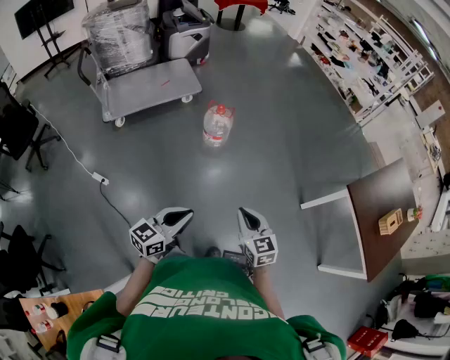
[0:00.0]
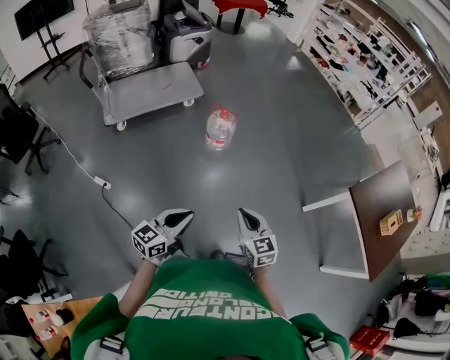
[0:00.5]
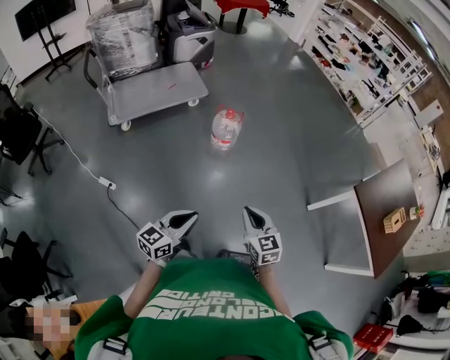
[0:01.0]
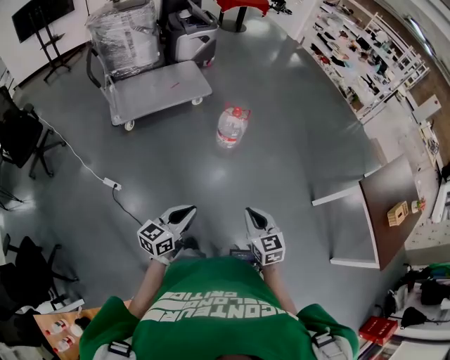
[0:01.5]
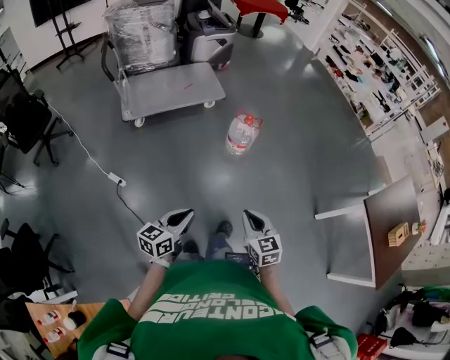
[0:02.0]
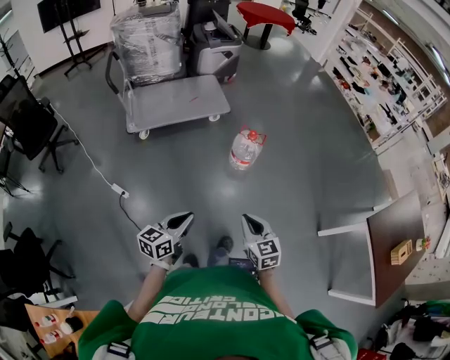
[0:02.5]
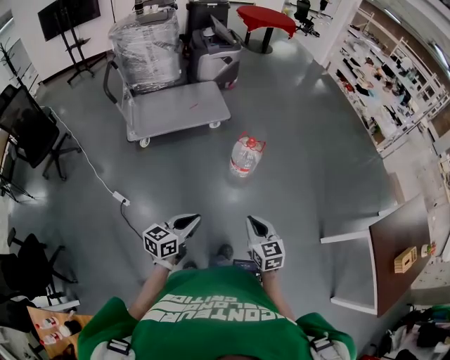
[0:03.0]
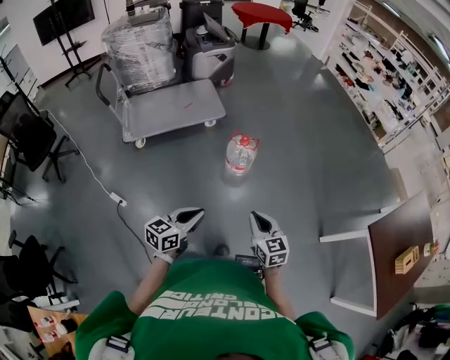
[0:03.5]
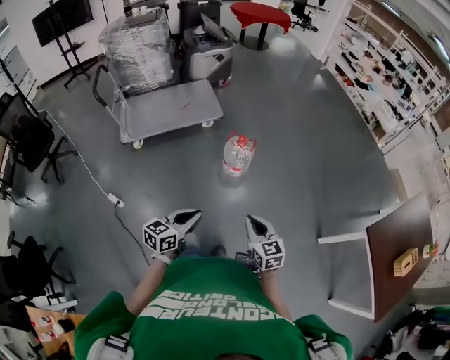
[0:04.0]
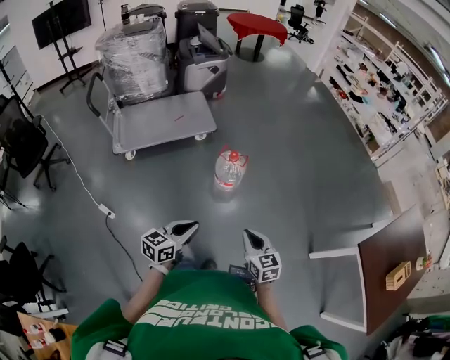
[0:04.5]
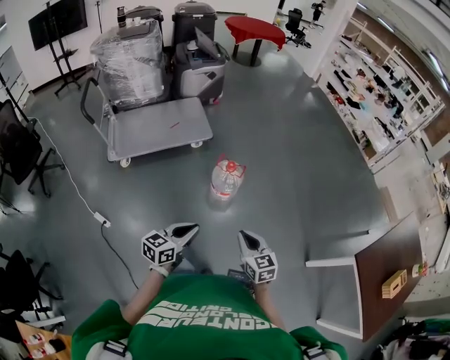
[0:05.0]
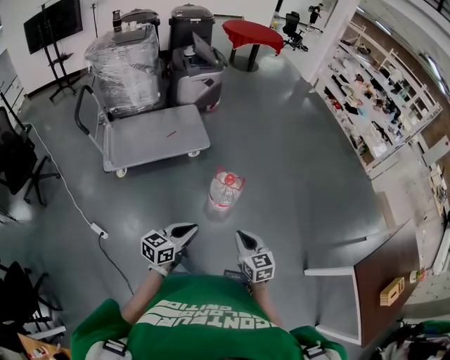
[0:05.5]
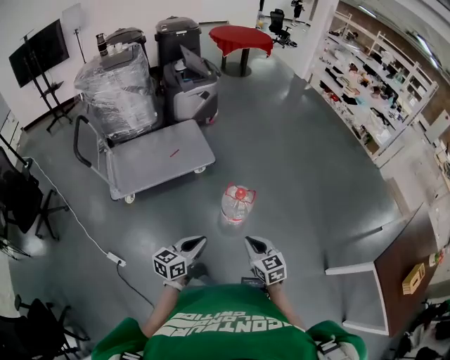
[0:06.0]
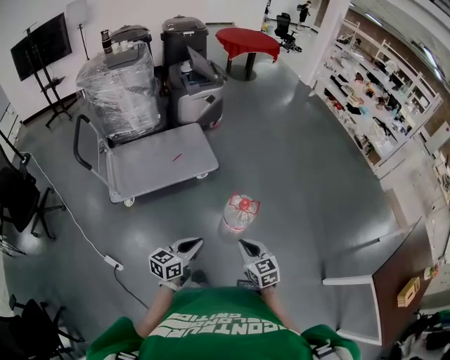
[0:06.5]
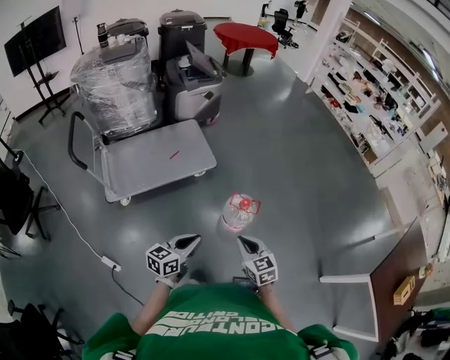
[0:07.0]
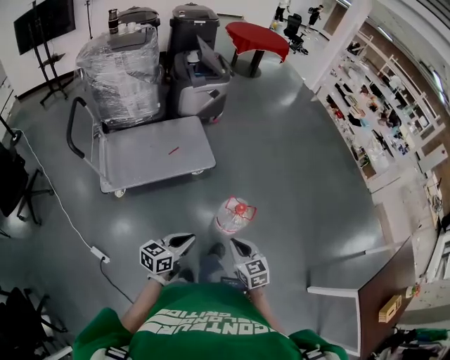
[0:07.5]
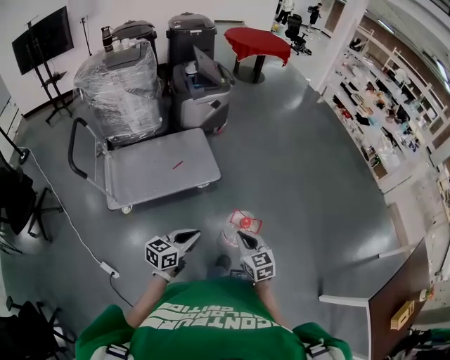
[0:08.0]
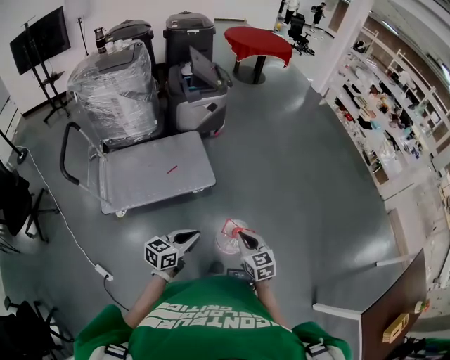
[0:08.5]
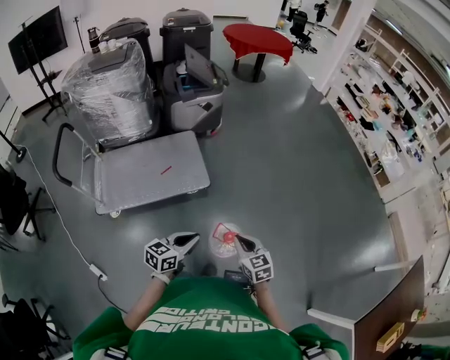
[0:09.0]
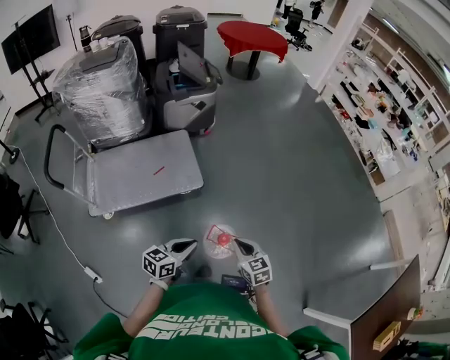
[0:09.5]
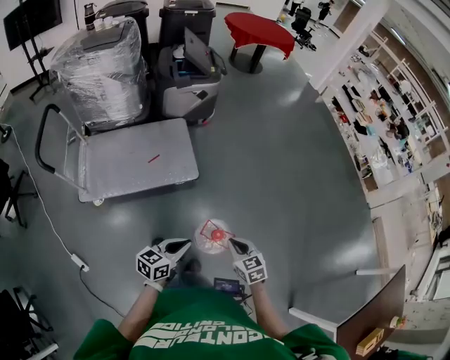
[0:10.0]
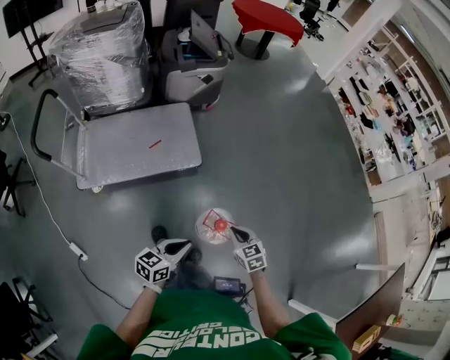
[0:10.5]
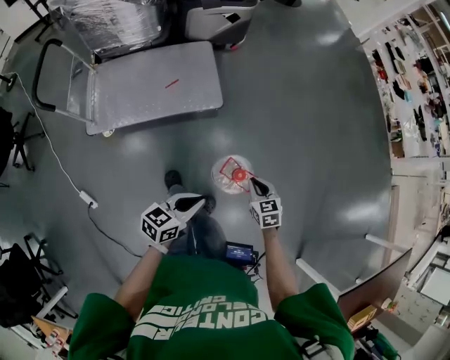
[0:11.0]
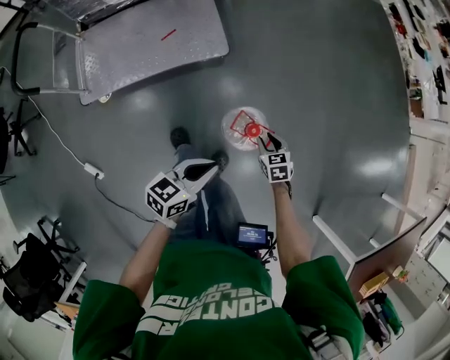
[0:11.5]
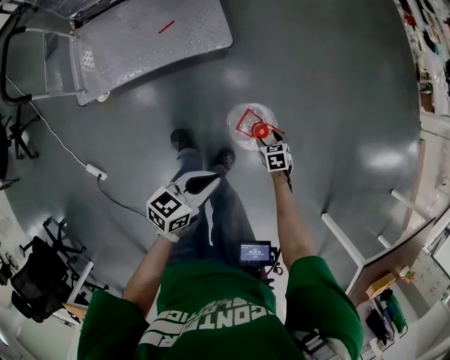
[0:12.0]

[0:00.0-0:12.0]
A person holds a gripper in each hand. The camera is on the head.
0:00.0 to 0:02.0: The grippers both shift to the left by about 15 cm.
0:02.0 to 0:04.0: Both grippers travel together forward and to the right, roughly 20 cm.
0:04.0 to 0:06.0: The right gripper travels forward and to the left by about 25 cm; the left gripper shifts roughly 25 cm forward.
0:06.0 to 0:08.0: The grippers both shift forward and to the left by some 20 cm.
0:08.0 to 0:10.0: The two grippers go roughly 15 cm forward, to the right and downward.
0:10.0 to 0:12.0: The left gripper heads downward, covering roughly 15 cm, while the right gripper moves downward, approximately 35 cm, swivels roughly 30 degrees, and opens.

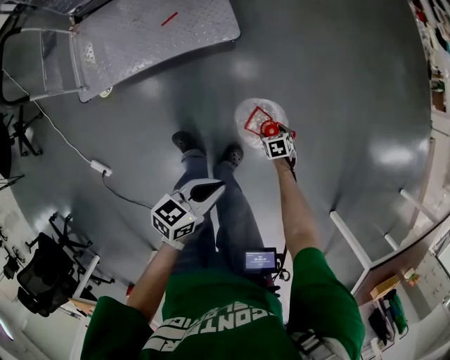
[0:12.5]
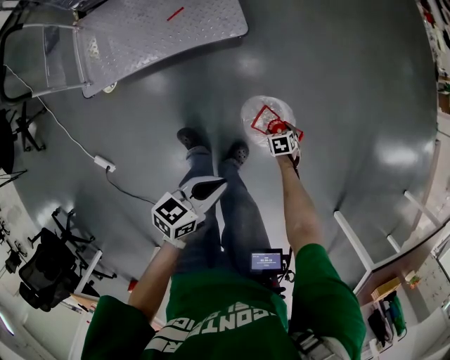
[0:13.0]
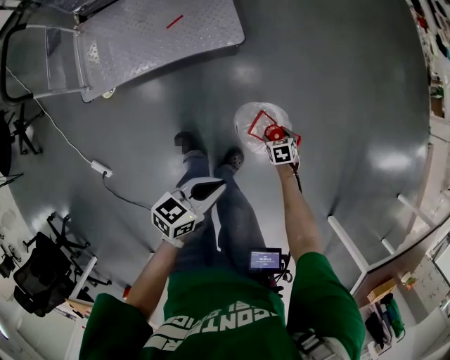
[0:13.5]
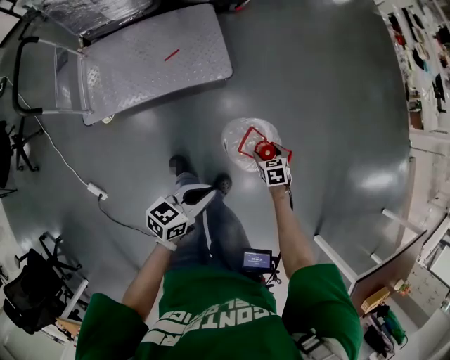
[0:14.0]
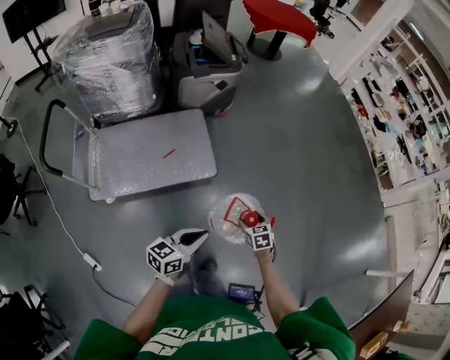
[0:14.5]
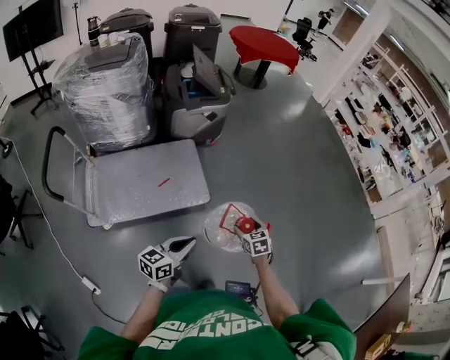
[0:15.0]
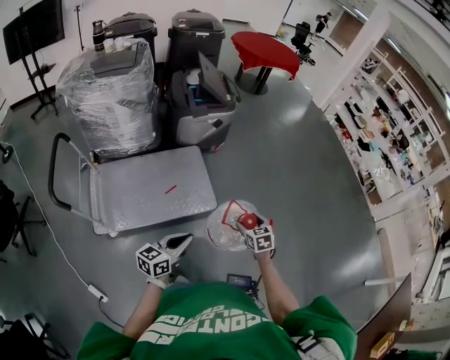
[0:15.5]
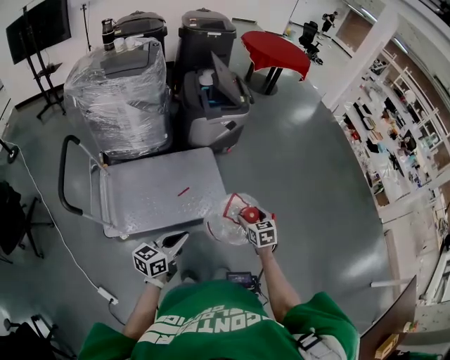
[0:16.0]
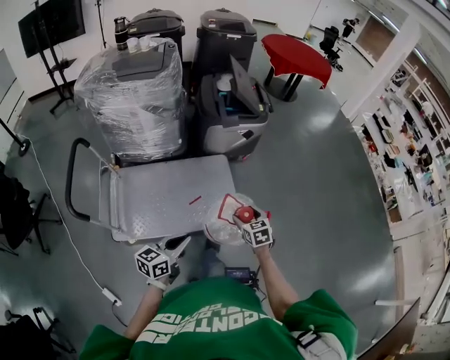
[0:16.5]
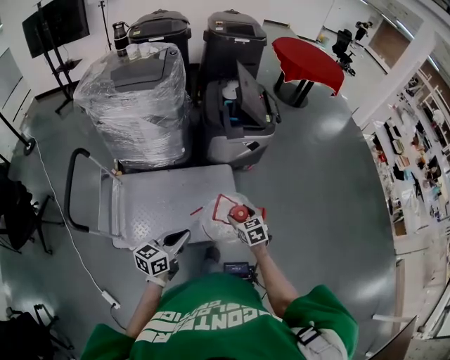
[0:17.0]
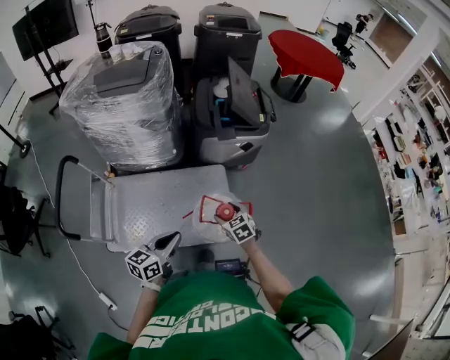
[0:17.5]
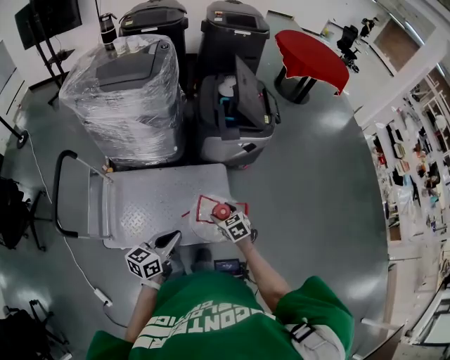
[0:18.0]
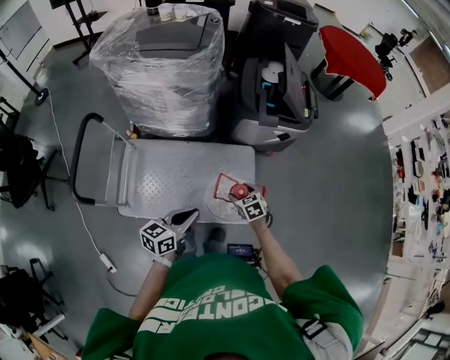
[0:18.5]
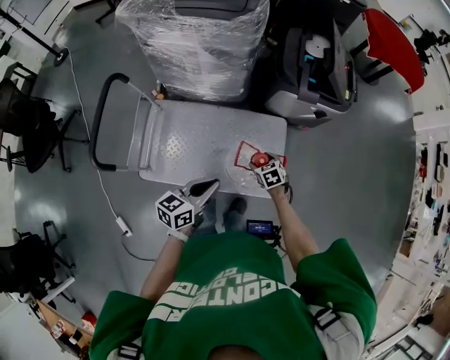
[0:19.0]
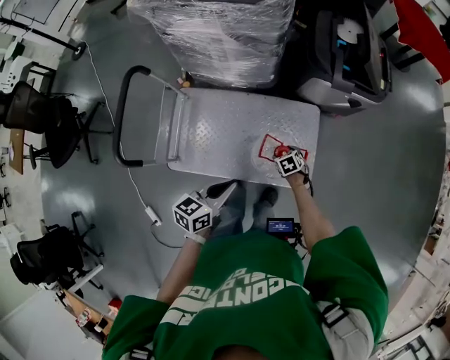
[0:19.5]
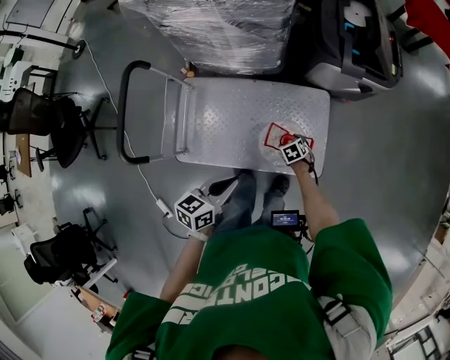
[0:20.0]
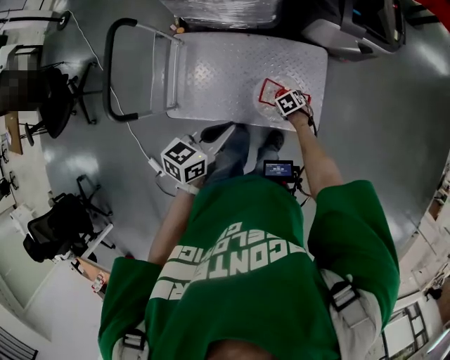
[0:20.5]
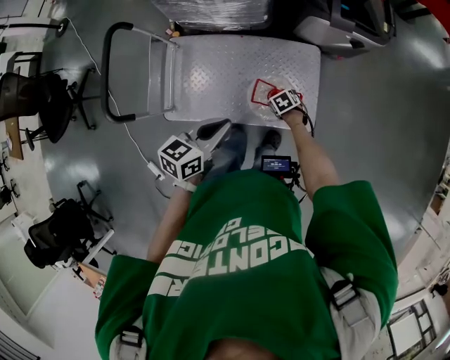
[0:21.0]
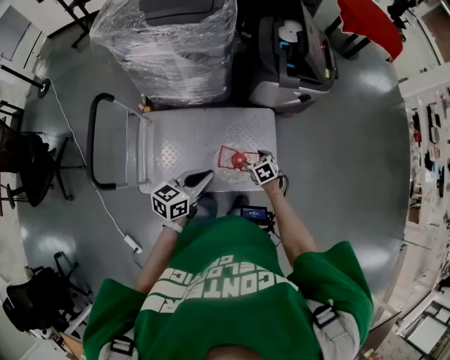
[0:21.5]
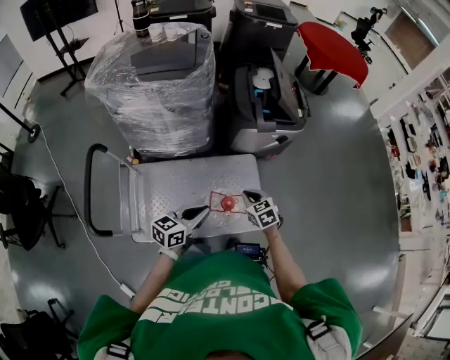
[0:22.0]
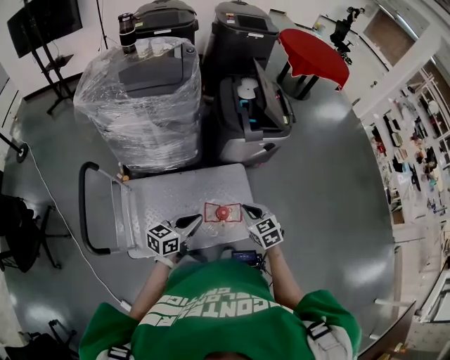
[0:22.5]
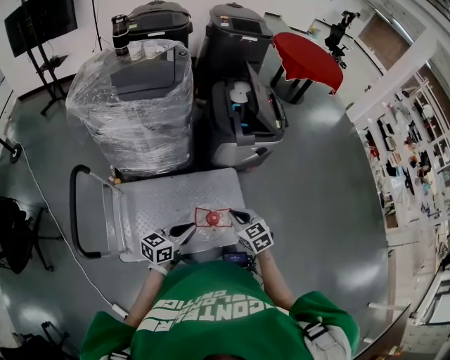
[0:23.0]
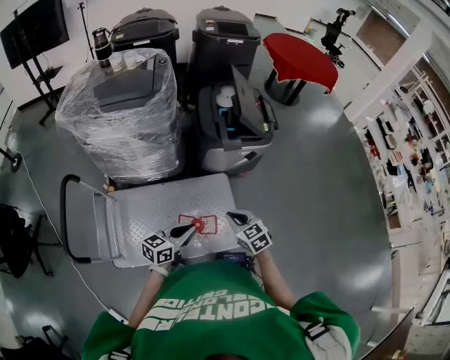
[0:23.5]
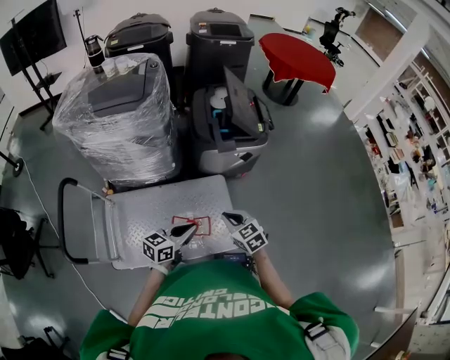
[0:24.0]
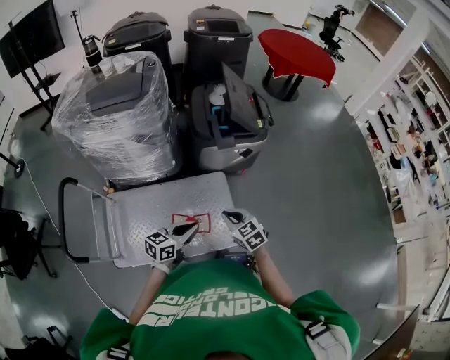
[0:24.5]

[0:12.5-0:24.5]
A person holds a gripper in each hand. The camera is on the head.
0:12.5 to 0:14.5: The left gripper moves upward, roughly 15 cm; the right gripper moves upward, about 30 cm, and swivels some 20 degrees.
0:14.5 to 0:16.5: Both grippers travel together to the left and forward, approximately 30 cm.
0:16.5 to 0:18.5: The left gripper moves forward, approximately 20 cm; the right gripper moves forward and to the left, some 25 cm, and turns by roughly 20 degrees.
0:18.5 to 0:20.5: The right gripper goes roughly 20 cm downward, and rotates roughly 30 degrees. Meanwhile the left gripper moves some 10 cm.
0:20.5 to 0:22.5: The left gripper shifts by about 5 cm, and swivels roughly 20 degrees. The right gripper shifts roughly 35 cm upward, tilts its fingers roughly 40 degrees upward, and closes up.
0:22.5 to 0:24.5: The left gripper heads to the right, covering roughly 15 cm, while the right gripper heads to the right, covering about 10 cm.

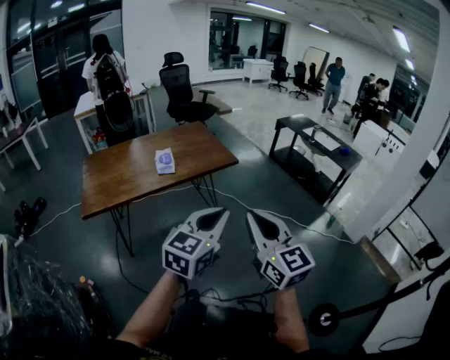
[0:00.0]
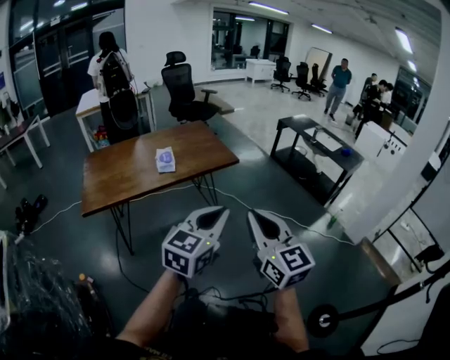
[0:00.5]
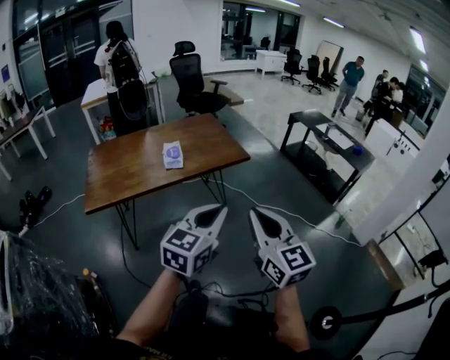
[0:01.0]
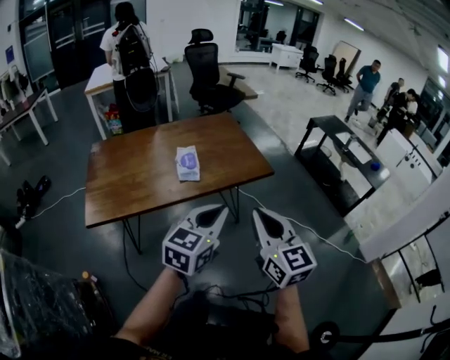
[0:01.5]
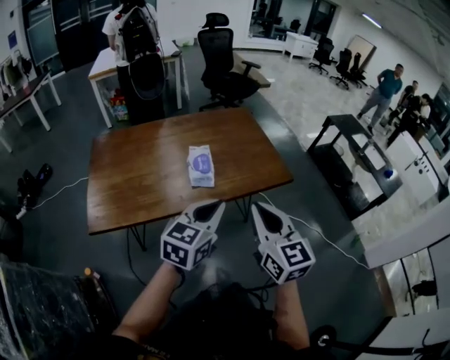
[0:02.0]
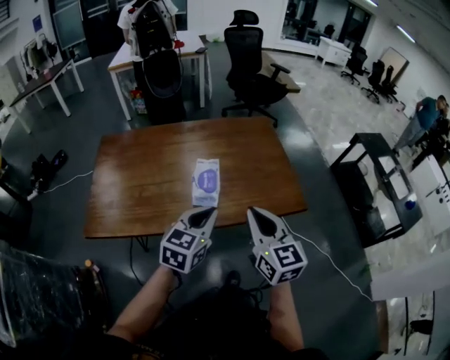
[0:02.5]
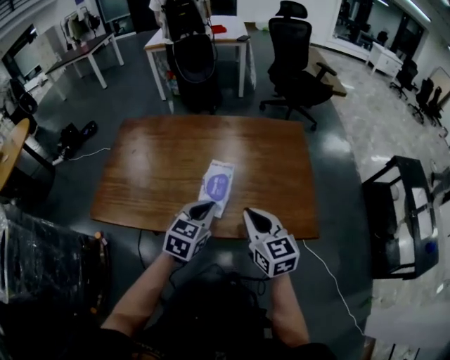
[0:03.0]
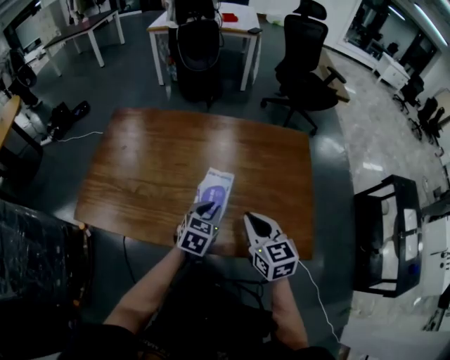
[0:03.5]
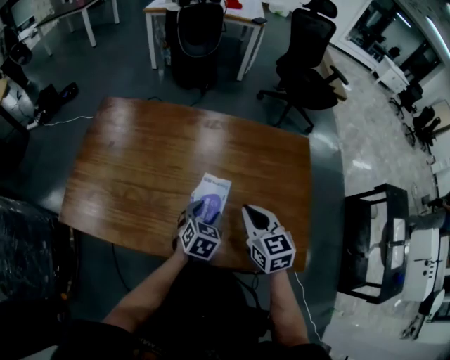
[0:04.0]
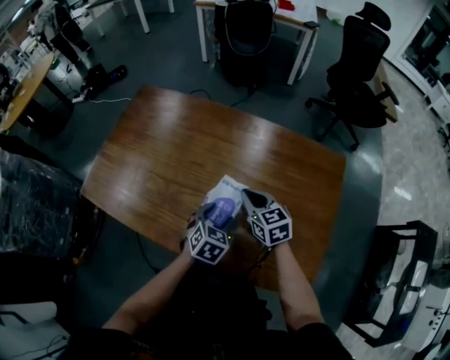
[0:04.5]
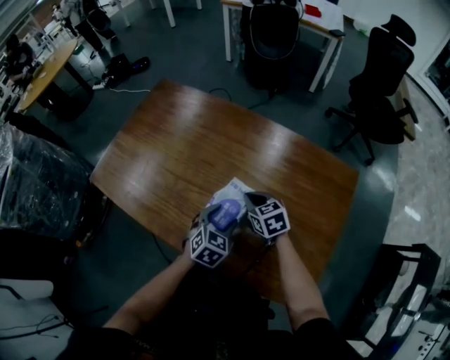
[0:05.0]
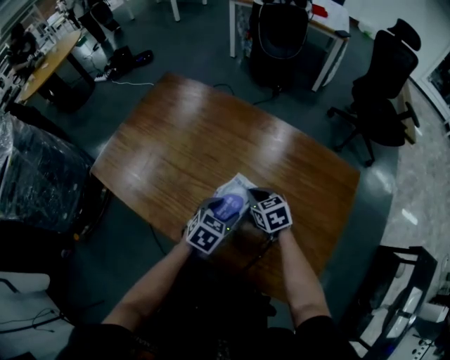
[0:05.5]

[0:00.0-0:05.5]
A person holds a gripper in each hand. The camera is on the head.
0:00.0 to 0:02.0: Both grippers travel together forward and to the left, about 30 cm.
0:02.0 to 0:03.5: The left gripper moves approximately 30 cm, and turns by approximately 40 degrees. Meanwhile the right gripper ends up approximately 30 cm from where it was, and changes its angle by roughly 30 degrees.
0:03.5 to 0:05.5: The left gripper goes about 5 cm downward, and opens. Meanwhile the right gripper shifts by roughly 25 cm, and swivels roughly 40 degrees.
